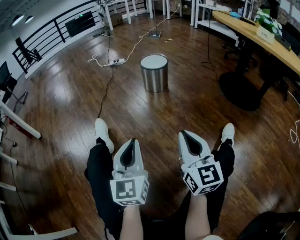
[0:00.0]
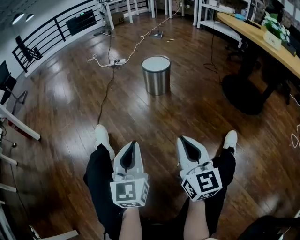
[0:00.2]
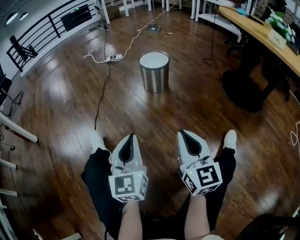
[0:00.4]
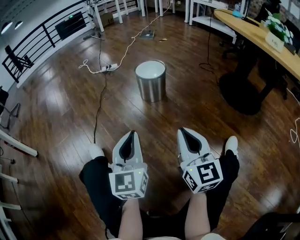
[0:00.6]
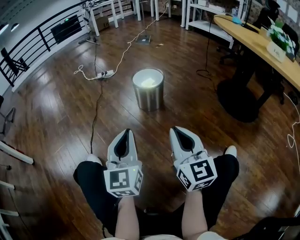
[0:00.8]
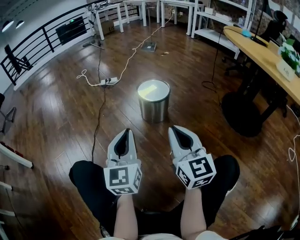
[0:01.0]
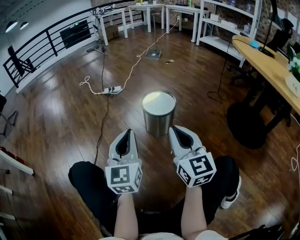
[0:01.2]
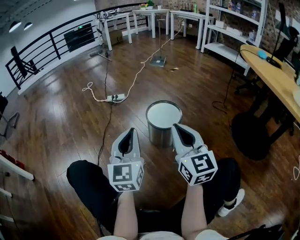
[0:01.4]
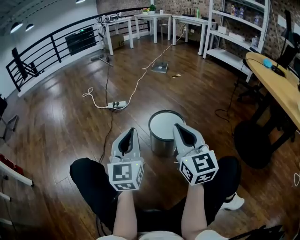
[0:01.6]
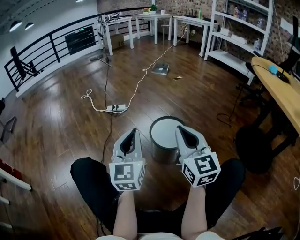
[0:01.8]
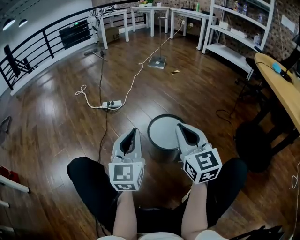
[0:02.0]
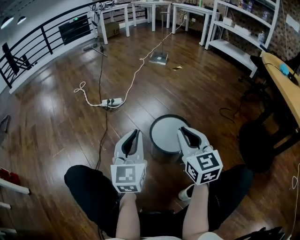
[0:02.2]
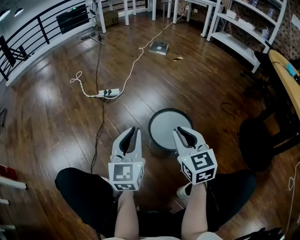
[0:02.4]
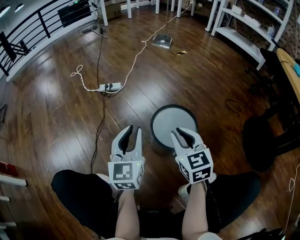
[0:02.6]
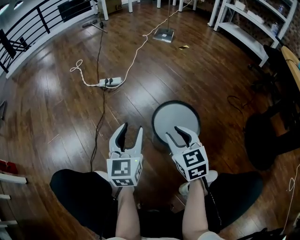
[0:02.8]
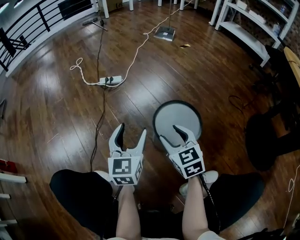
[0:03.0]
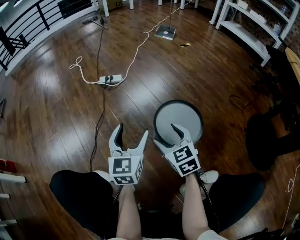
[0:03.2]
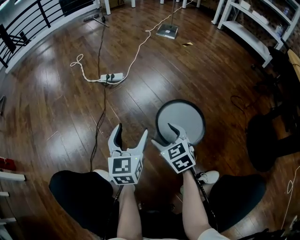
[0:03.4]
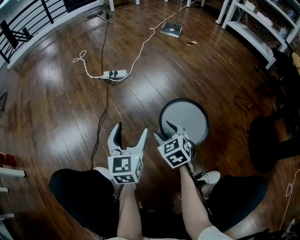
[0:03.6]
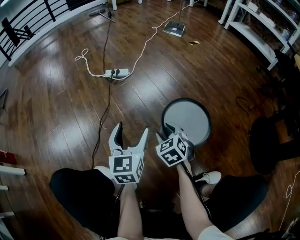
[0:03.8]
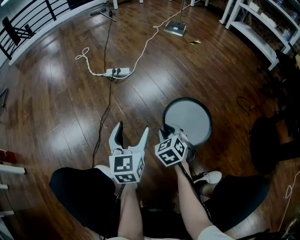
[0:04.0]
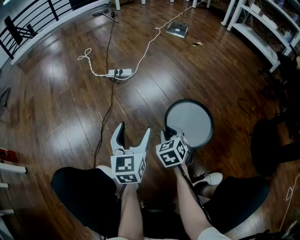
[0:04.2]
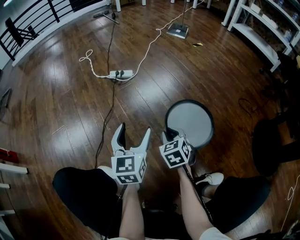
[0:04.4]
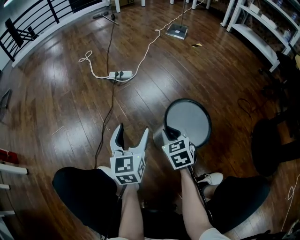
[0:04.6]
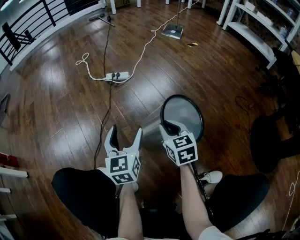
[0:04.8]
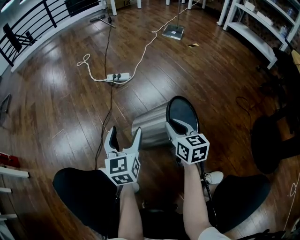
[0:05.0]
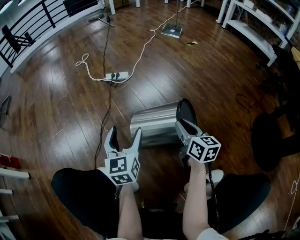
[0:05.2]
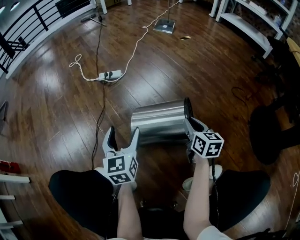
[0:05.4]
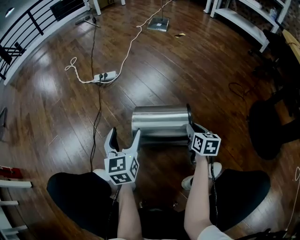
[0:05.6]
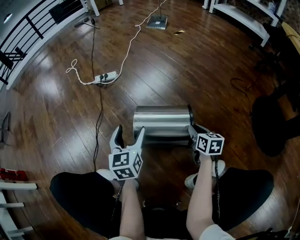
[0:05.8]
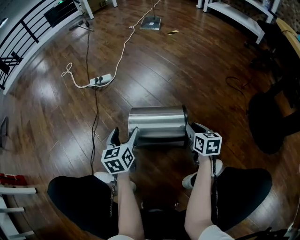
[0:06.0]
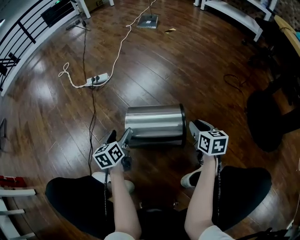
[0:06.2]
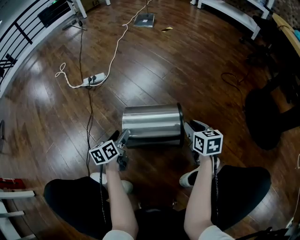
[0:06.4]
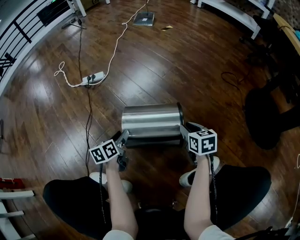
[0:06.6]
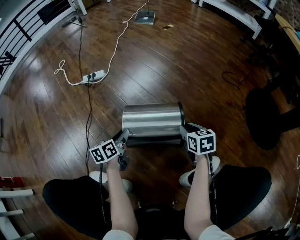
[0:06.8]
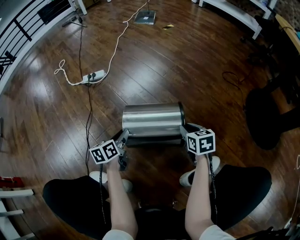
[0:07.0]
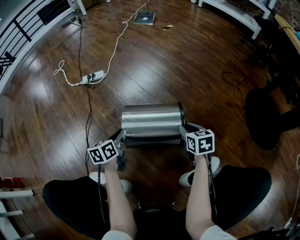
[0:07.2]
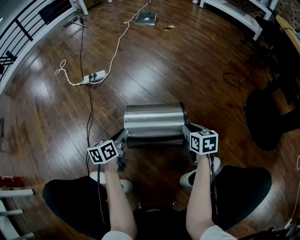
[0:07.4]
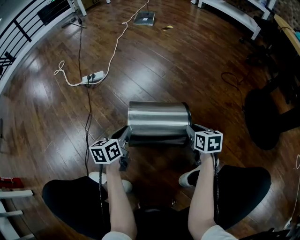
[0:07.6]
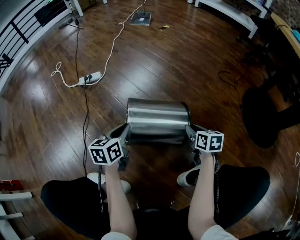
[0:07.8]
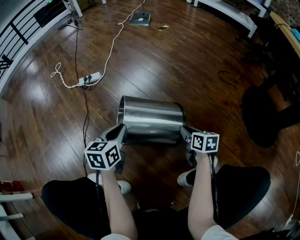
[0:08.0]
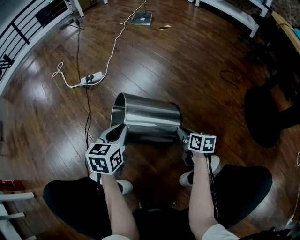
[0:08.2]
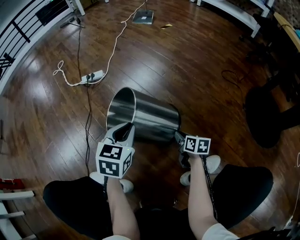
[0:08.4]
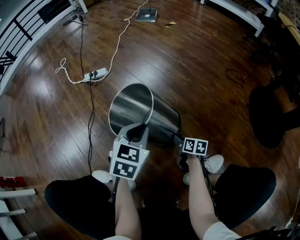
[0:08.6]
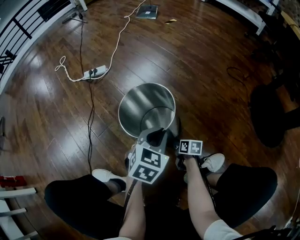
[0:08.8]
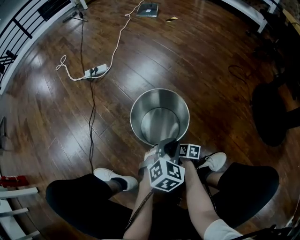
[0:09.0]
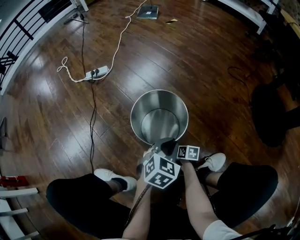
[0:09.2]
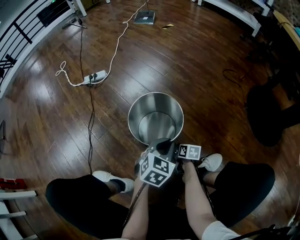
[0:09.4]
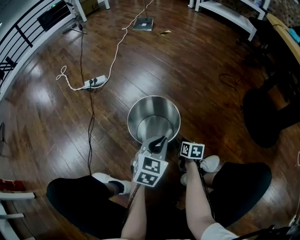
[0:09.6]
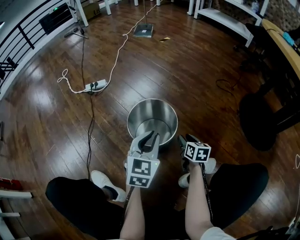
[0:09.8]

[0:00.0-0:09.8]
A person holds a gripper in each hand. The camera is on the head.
0:00.0 to 0:01.4: The pair of grippers is taken forward, some 50 cm.
0:01.4 to 0:02.8: The two grippers go about 30 cm forward and downward. The right gripper swivels approximately 30 degrees, and opens up. The left gripper opens.
0:02.8 to 0:04.2: The left gripper ends up about 5 cm from where it was, and opens. The right gripper goes approximately 15 cm downward and to the left, turns by roughly 20 degrees, and opens, then closes again.
0:04.2 to 0:05.6: The right gripper is displaced to the right by some 20 cm, and rotates around the line of its fingers by about 40 degrees, clockwise from behind.
0:05.6 to 0:07.0: The left gripper travels downward by roughly 15 cm, rotates roughly 40 degrees, and closes up.
0:07.0 to 0:08.4: The left gripper moves upward and to the right, approximately 15 cm, and changes its angle by some 40 degrees. Meanwhile the right gripper moves downward, some 10 cm, and turns by roughly 30 degrees.
0:08.4 to 0:09.8: The right gripper moves approximately 15 cm downward and comes back. The left gripper moves to the right, about 10 cm.

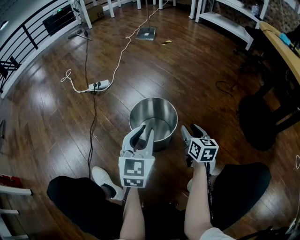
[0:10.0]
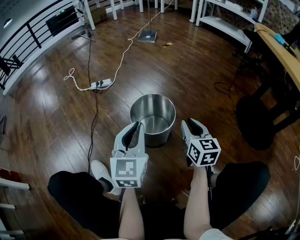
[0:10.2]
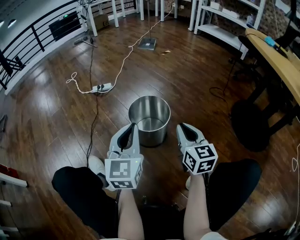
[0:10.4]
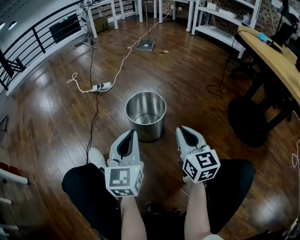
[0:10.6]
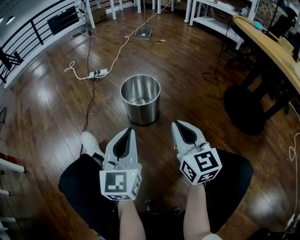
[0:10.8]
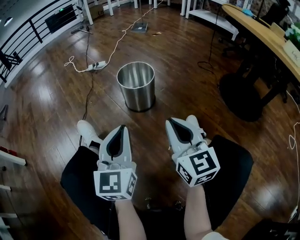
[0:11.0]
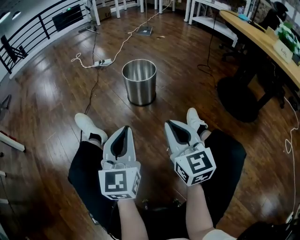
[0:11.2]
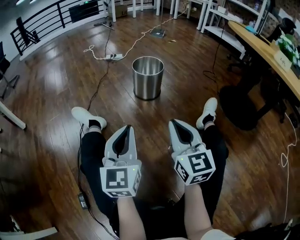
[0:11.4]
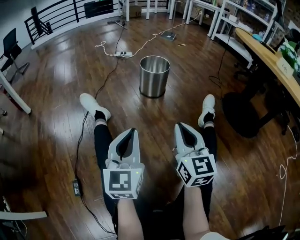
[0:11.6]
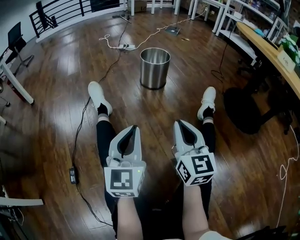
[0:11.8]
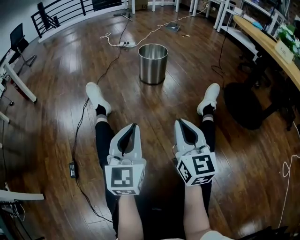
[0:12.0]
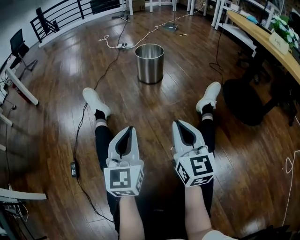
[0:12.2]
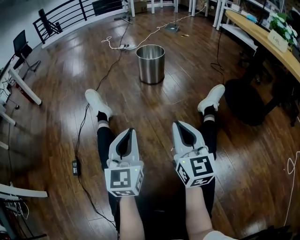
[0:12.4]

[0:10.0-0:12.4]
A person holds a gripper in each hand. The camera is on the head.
0:10.0 to 0:11.2: Both grippers are carried backward, about 40 cm. The right gripper travels upward by about 20 cm, changes its angle by about 30 degrees, and closes its fingers.
0:11.2 to 0:12.4: The left gripper travels backward by about 25 cm; the right gripper is displaced backward and to the right by about 25 cm.

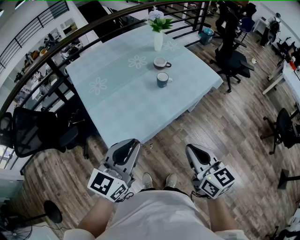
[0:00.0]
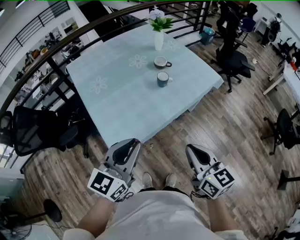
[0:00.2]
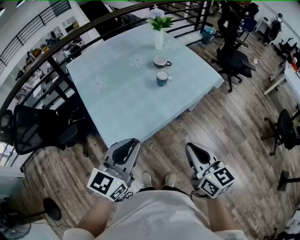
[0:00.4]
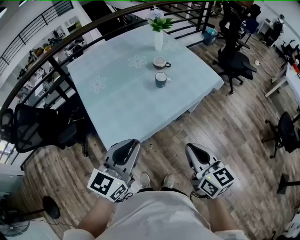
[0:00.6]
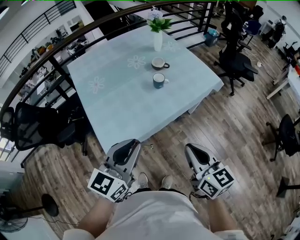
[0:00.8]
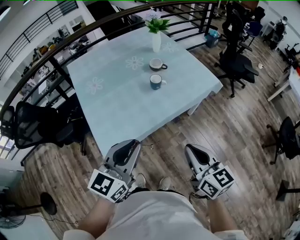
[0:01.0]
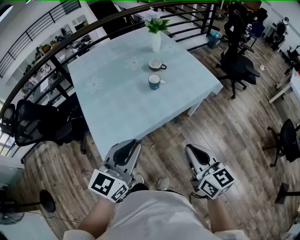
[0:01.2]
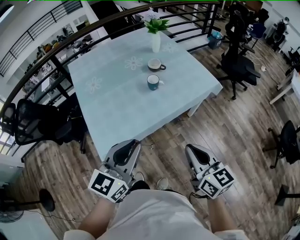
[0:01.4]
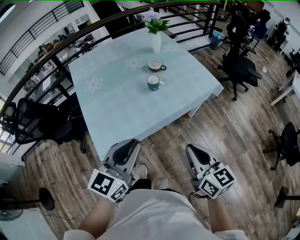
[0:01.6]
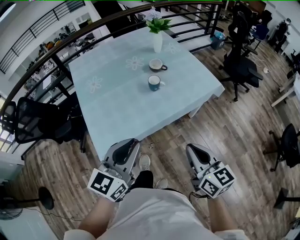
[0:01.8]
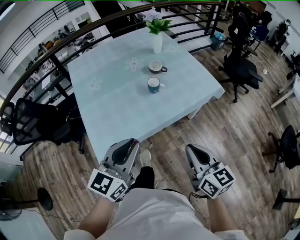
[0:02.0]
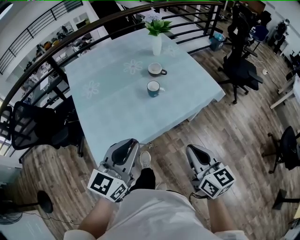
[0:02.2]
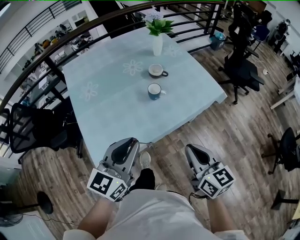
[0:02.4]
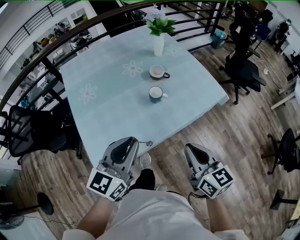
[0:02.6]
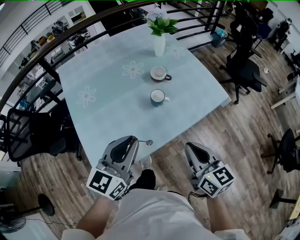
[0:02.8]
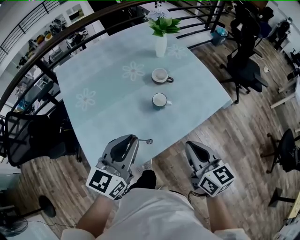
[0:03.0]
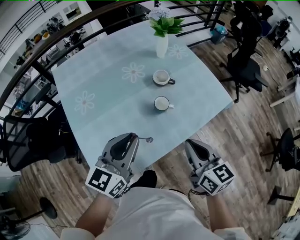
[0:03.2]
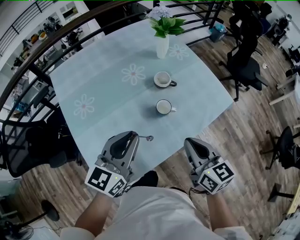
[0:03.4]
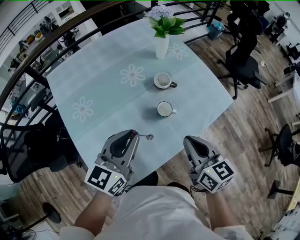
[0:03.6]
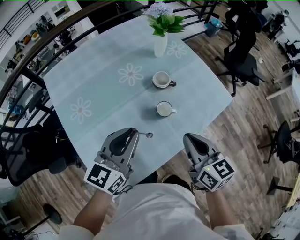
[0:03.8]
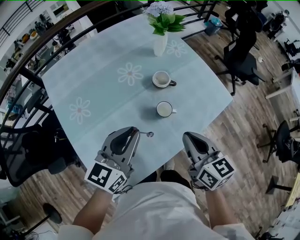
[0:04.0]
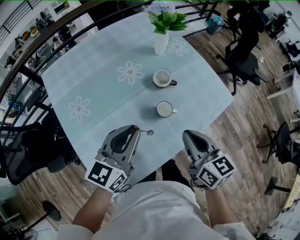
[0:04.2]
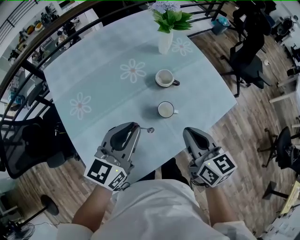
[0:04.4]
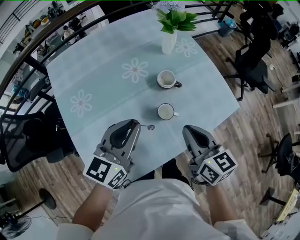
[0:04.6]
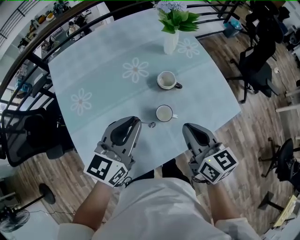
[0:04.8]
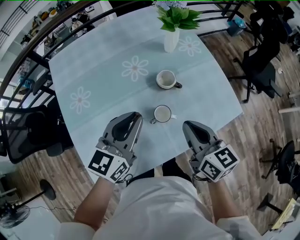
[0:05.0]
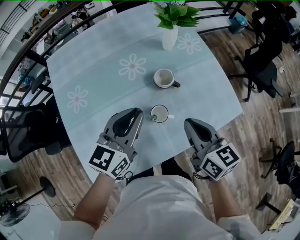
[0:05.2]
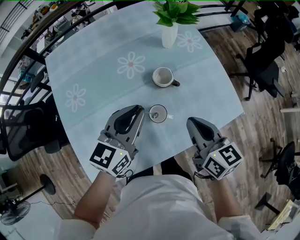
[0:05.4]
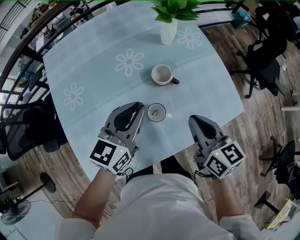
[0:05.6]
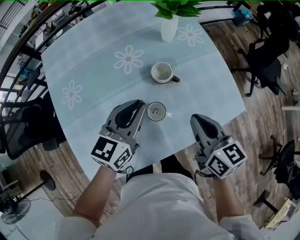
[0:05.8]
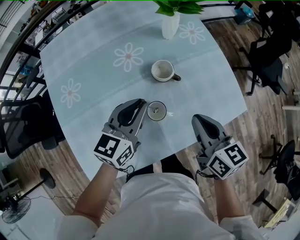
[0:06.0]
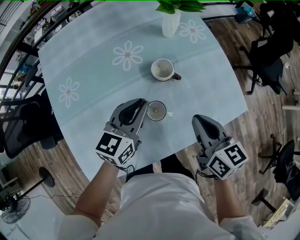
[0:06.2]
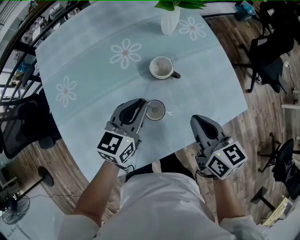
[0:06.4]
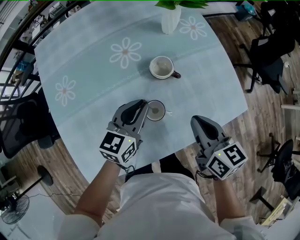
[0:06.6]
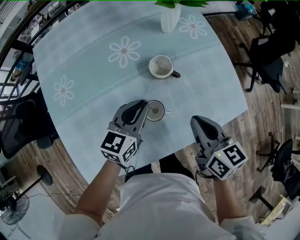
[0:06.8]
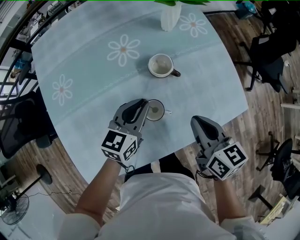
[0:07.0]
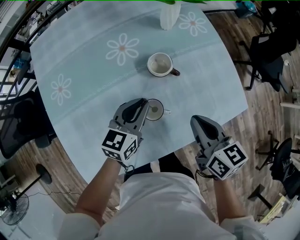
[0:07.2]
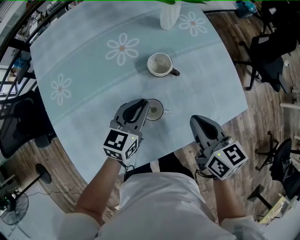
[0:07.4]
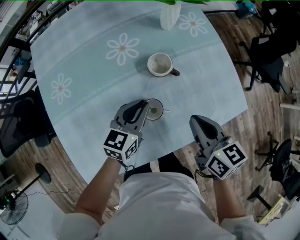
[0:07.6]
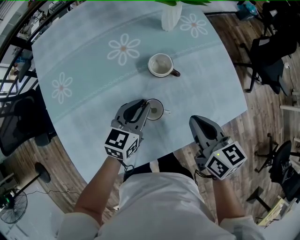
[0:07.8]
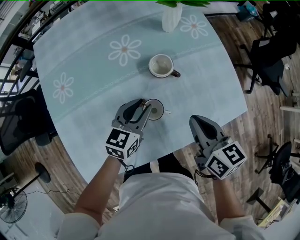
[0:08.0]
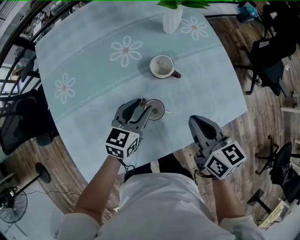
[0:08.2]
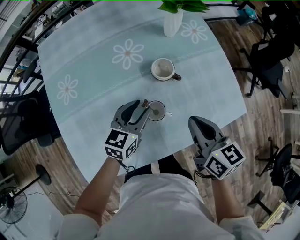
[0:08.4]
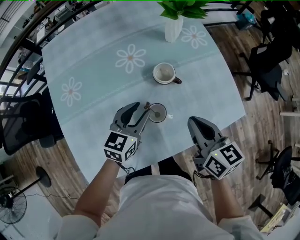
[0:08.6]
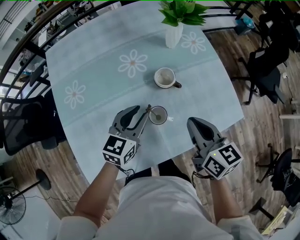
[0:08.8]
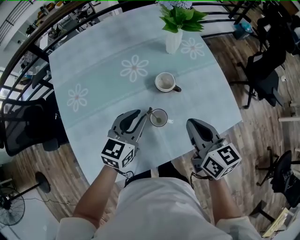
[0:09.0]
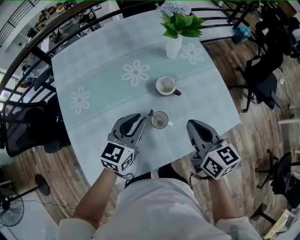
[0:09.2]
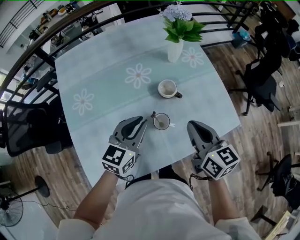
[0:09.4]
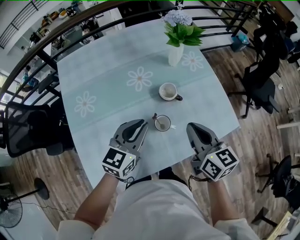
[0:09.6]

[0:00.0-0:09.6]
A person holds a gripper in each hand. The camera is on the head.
0:00.0 to 0:01.6: Both grippers move to the right, roughly 15 cm.
0:01.6 to 0:03.2: Both grippers move forward, roughly 25 cm.
0:03.2 to 0:04.8: The grippers both shift forward by some 15 cm.
0:04.8 to 0:06.4: The right gripper moves downward, to the right and forward, some 10 cm. The left gripper is displaced downward, forward and to the right by roughly 15 cm.
0:06.4 to 0:08.0: The left gripper goes roughly 5 cm downward.
0:08.0 to 0:09.6: The two grippers go approximately 15 cm upward.

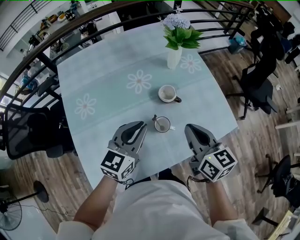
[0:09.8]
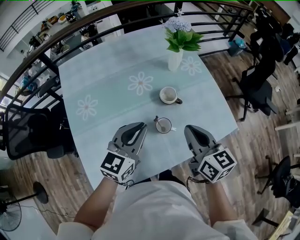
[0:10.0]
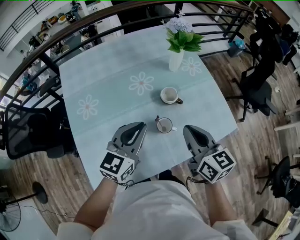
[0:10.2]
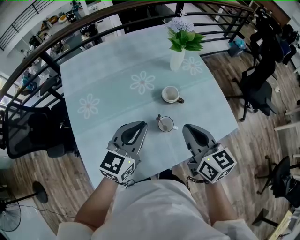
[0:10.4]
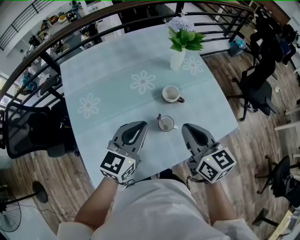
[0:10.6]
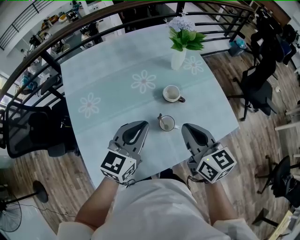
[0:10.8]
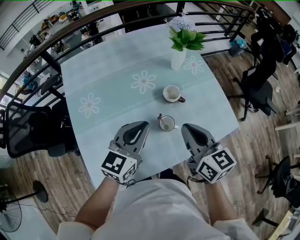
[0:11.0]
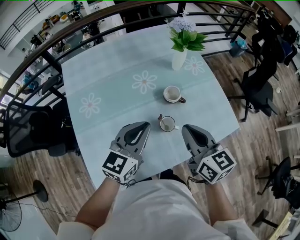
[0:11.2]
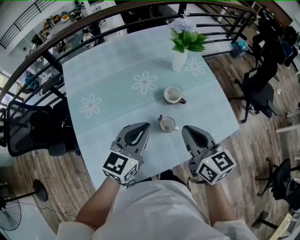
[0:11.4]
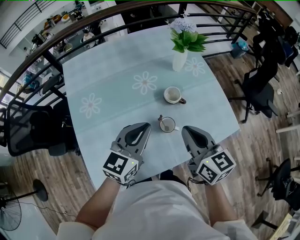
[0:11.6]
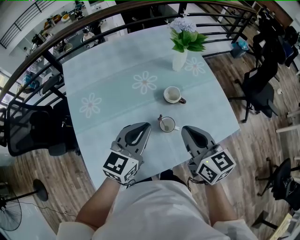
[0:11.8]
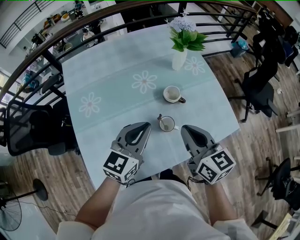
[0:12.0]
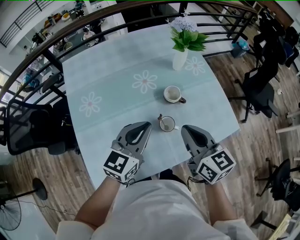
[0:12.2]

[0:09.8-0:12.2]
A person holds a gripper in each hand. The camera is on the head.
0:09.8 to 0:11.0: The grippers move only a little.
0:11.0 to 0:12.2: Both grippers stay about where they are.
